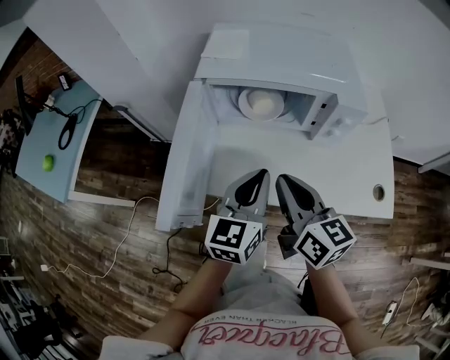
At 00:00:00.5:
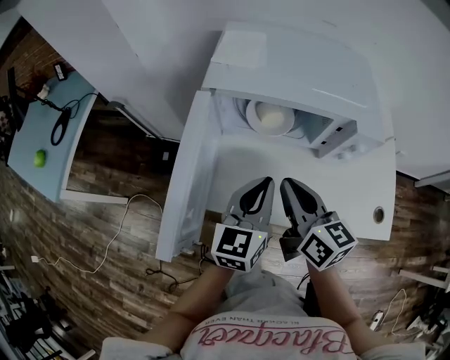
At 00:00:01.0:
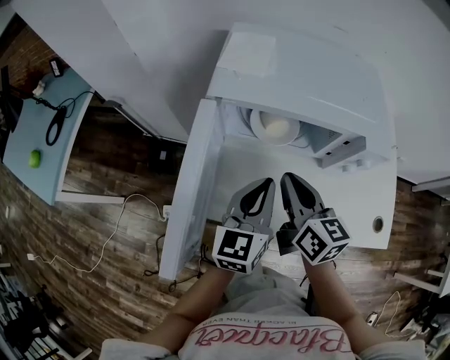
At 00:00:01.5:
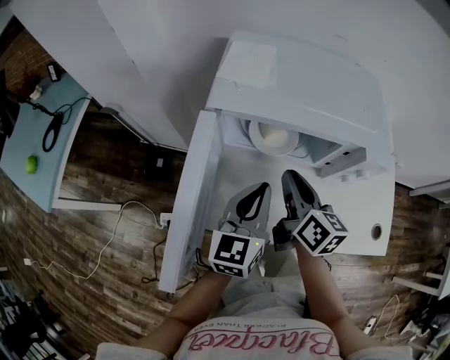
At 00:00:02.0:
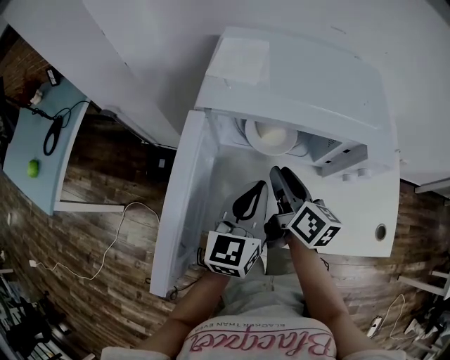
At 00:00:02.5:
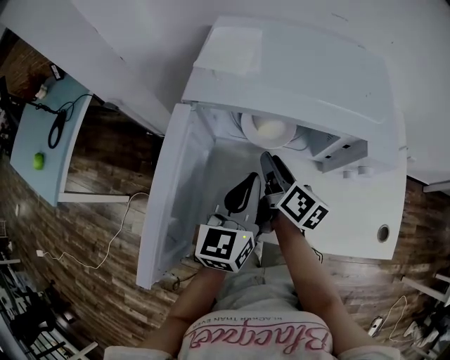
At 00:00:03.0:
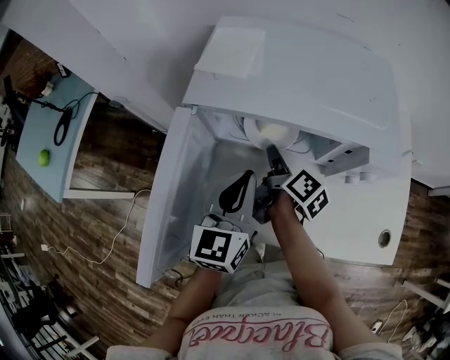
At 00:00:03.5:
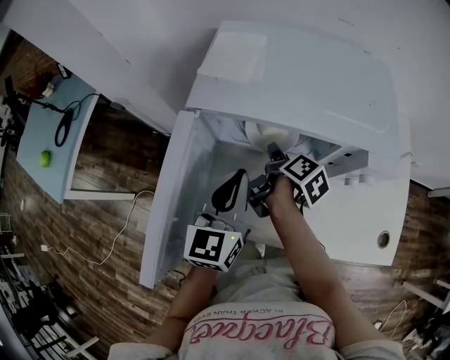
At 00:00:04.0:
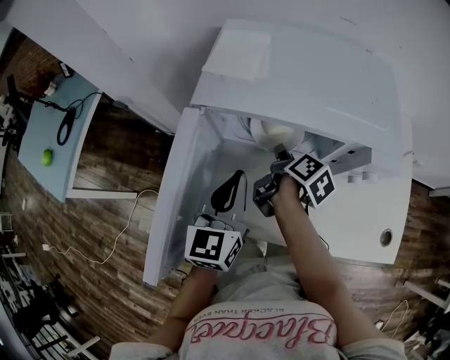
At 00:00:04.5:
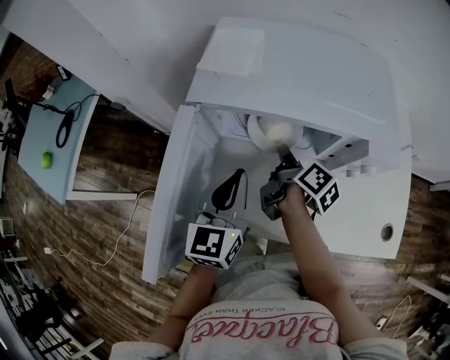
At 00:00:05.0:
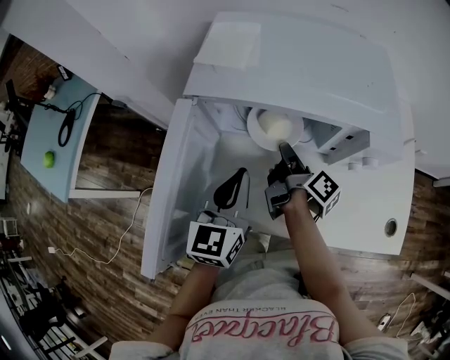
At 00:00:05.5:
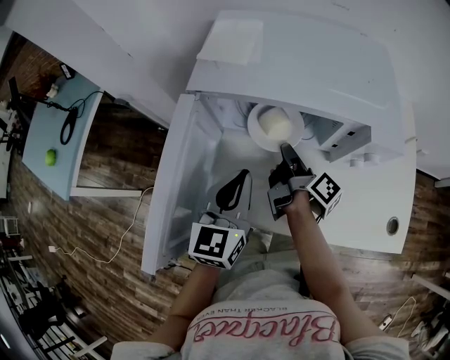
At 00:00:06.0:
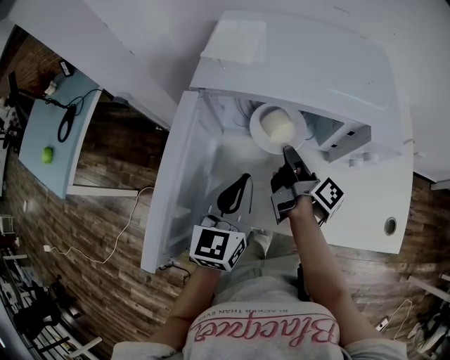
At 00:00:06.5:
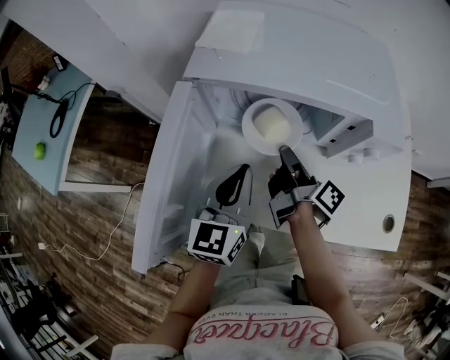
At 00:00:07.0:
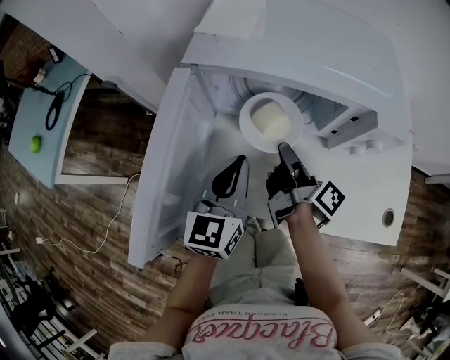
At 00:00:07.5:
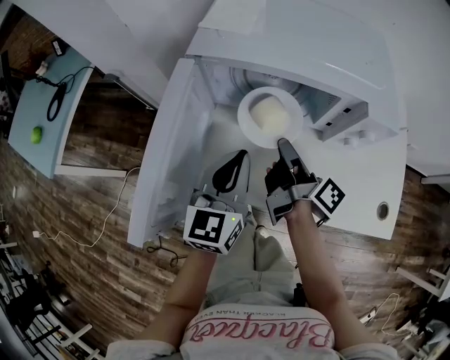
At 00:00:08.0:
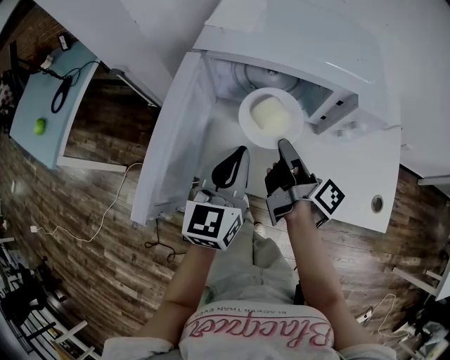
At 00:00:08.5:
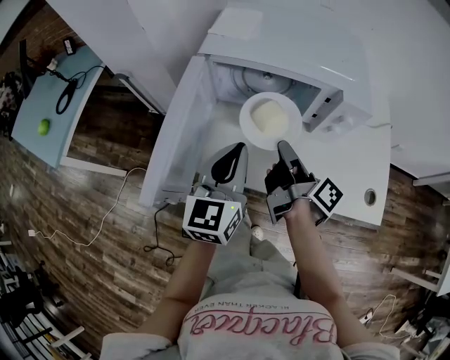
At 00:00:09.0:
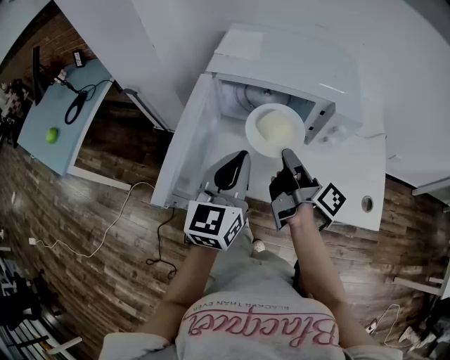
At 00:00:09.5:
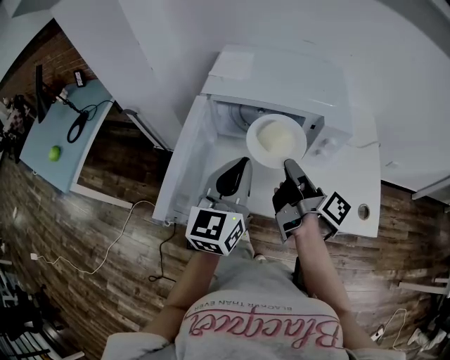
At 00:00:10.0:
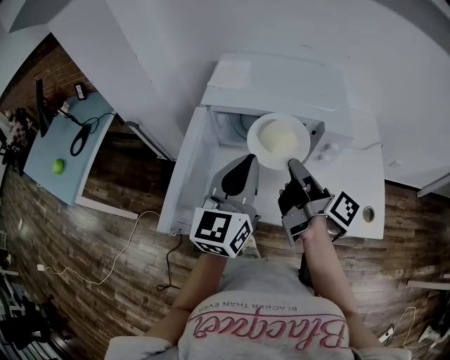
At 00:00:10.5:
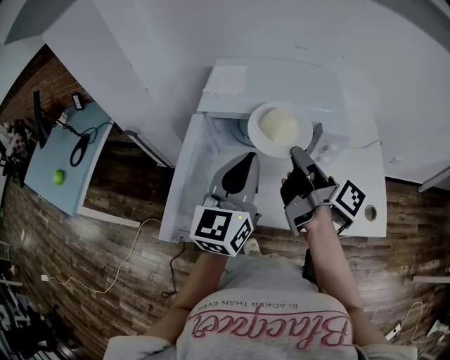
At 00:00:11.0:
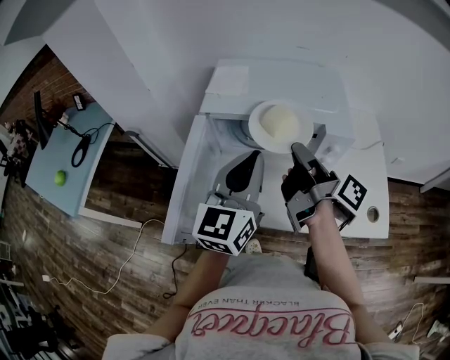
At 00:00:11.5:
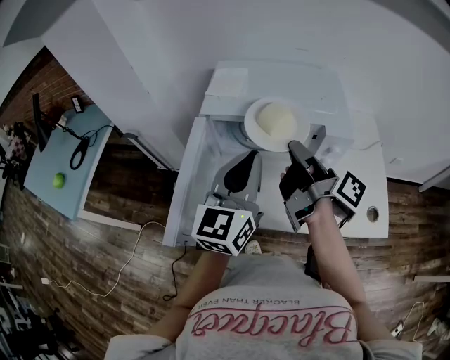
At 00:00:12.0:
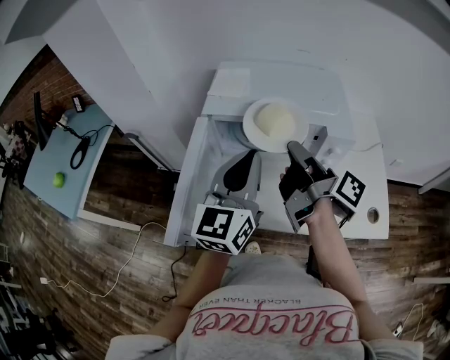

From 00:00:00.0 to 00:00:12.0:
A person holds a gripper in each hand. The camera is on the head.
From 00:00:00.0 to 00:00:02.0: The right gripper travels forward and downward by about 20 cm, changes its angle by approximately 20 degrees, and opens its fingers. Meanwhile the left gripper is displaced forward by roughly 10 cm.
From 00:00:02.0 to 00:00:04.0: The right gripper goes about 10 cm downward and forward, and turns by approximately 40 degrees.
From 00:00:04.0 to 00:00:06.0: The right gripper changes its angle by some 30 degrees.
From 00:00:06.0 to 00:00:08.0: The right gripper is displaced backward and upward by some 10 cm, while the left gripper ends up roughly 5 cm from where it was.
From 00:00:08.0 to 00:00:10.0: Both grippers travel together upward, approximately 10 cm.
From 00:00:10.0 to 00:00:12.0: The right gripper moves some 5 cm.

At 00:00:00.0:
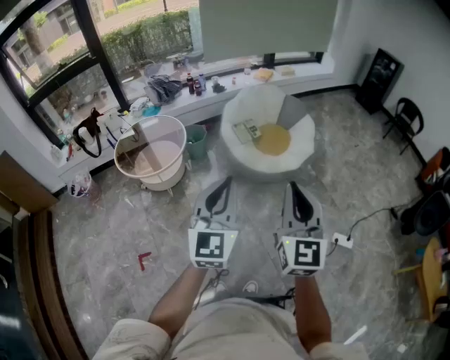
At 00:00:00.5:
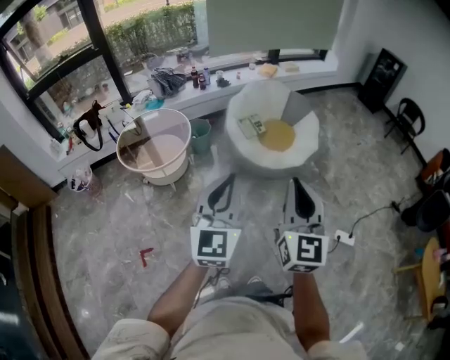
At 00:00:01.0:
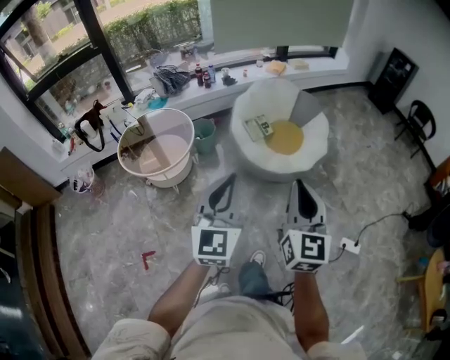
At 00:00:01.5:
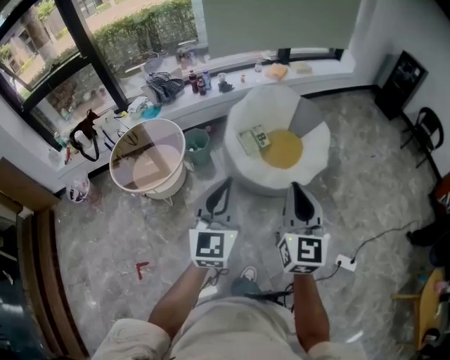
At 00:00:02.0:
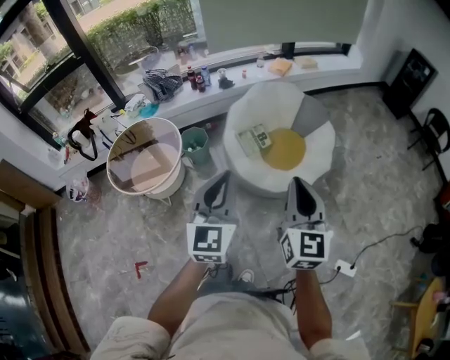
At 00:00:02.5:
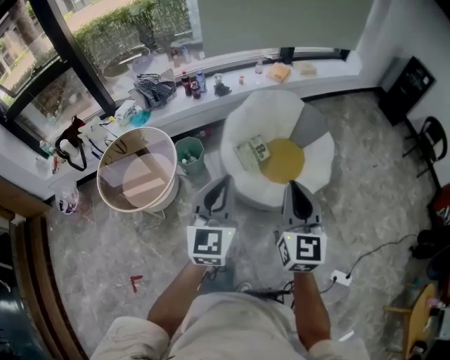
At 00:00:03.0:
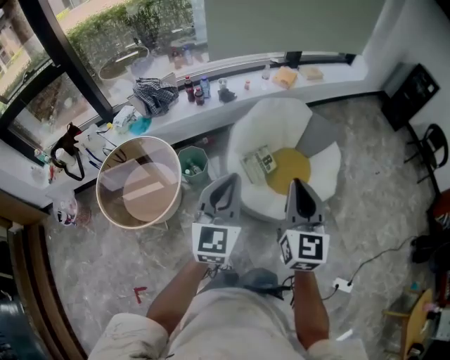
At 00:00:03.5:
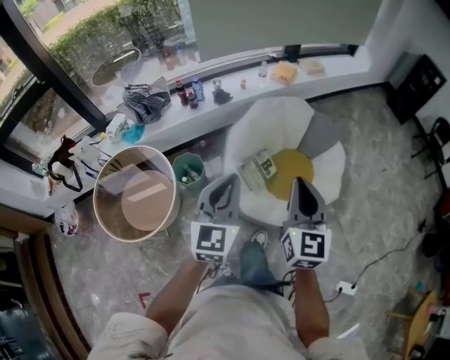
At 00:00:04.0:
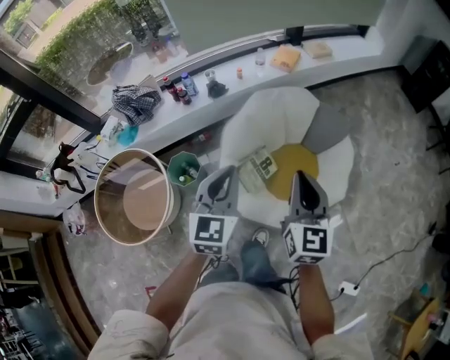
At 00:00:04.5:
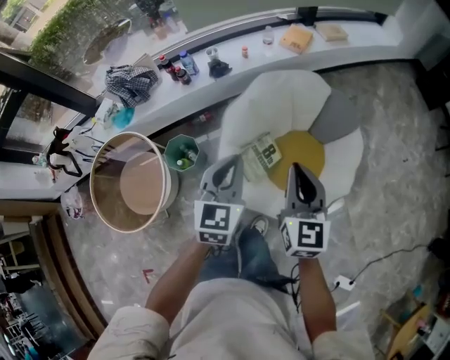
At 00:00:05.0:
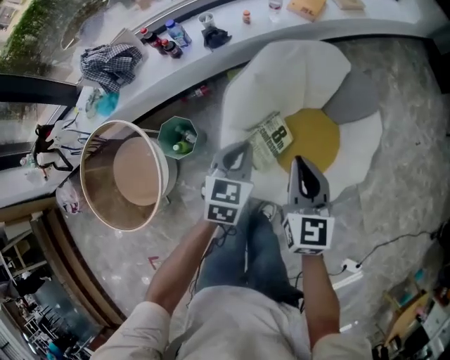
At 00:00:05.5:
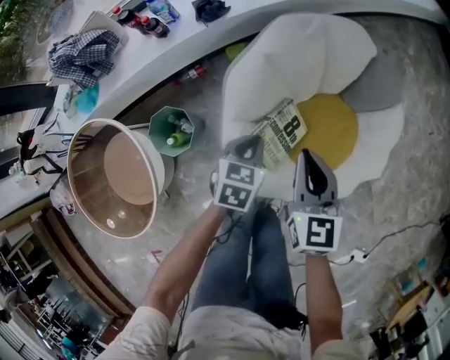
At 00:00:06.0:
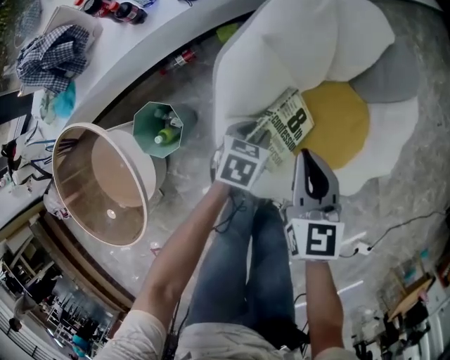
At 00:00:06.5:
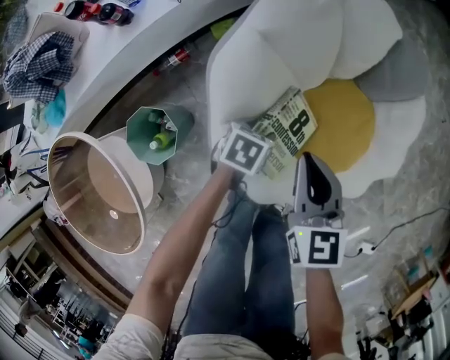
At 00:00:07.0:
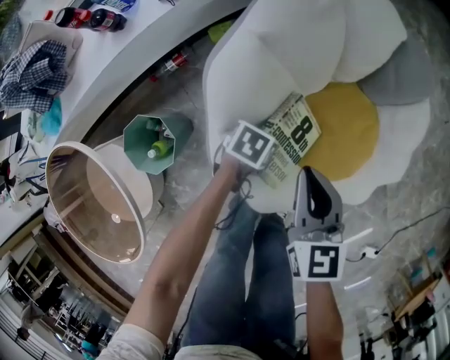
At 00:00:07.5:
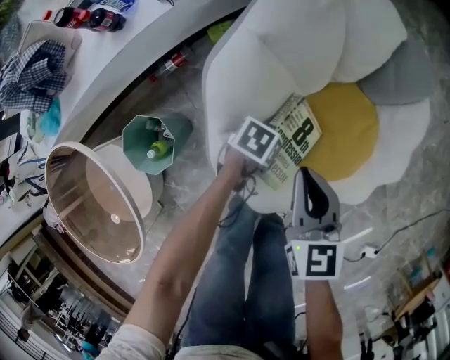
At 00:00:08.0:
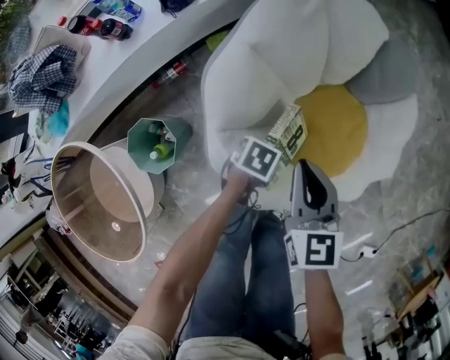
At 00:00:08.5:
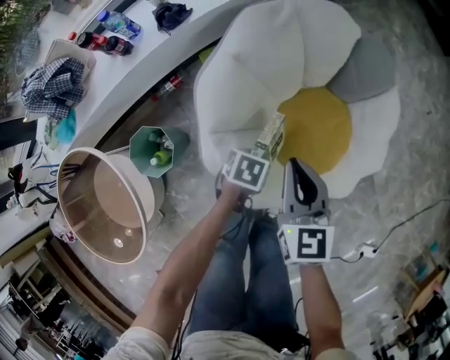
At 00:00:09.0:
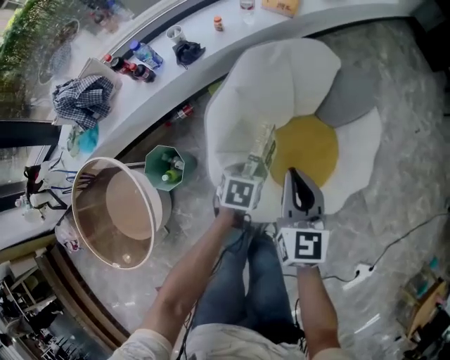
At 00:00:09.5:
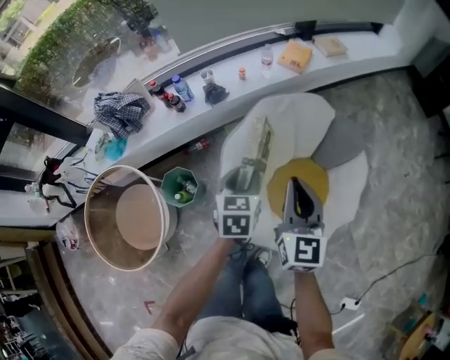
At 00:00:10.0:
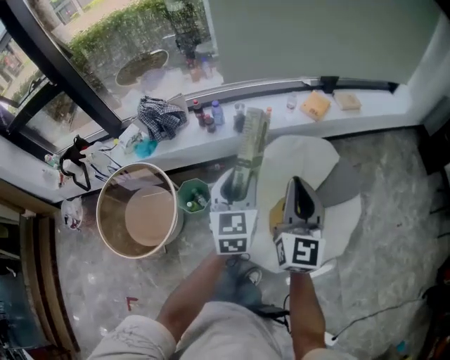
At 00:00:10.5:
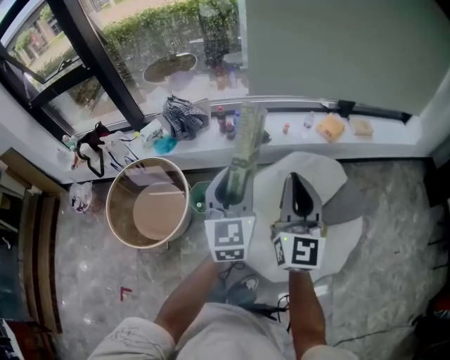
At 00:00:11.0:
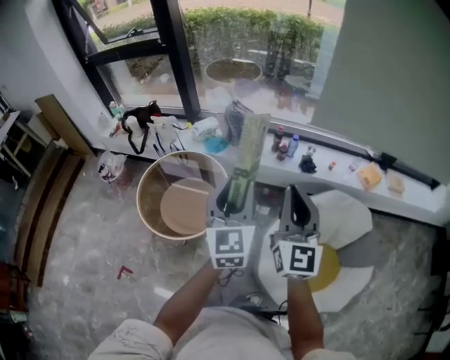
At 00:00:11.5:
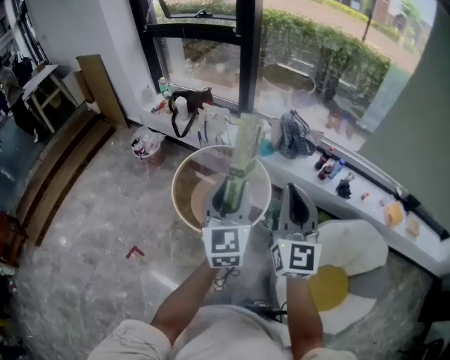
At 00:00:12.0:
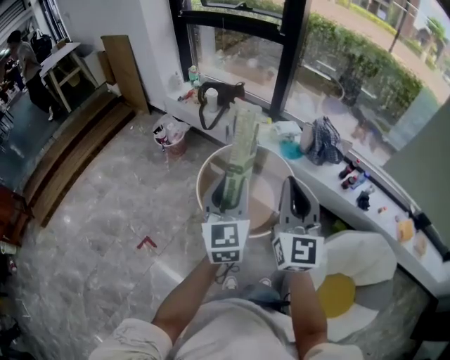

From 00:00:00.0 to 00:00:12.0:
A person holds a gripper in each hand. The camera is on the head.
From 00:00:00.0 to 00:00:02.0: The grippers both shift forward by approximately 30 cm.
From 00:00:02.0 to 00:00:04.0: Both grippers are carried forward, roughly 40 cm.
From 00:00:04.0 to 00:00:06.0: The right gripper goes roughly 40 cm downward and forward, and turns by some 20 degrees; the left gripper heads downward, covering about 50 cm, tilts its fingers about 40 degrees downward, and opens.
From 00:00:06.0 to 00:00:08.0: The left gripper travels downward and to the right by some 10 cm, and changes its angle by some 20 degrees.
From 00:00:08.0 to 00:00:10.0: The grippers both shift upward by approximately 50 cm. The left gripper angles its fingers upward, by roughly 50 degrees. Meanwhile the right gripper tips its fingers upward by some 40 degrees.
From 00:00:10.0 to 00:00:12.0: The pair of grippers is taken about 60 cm. The right gripper swivels approximately 50 degrees; the left gripper swivels about 50 degrees.

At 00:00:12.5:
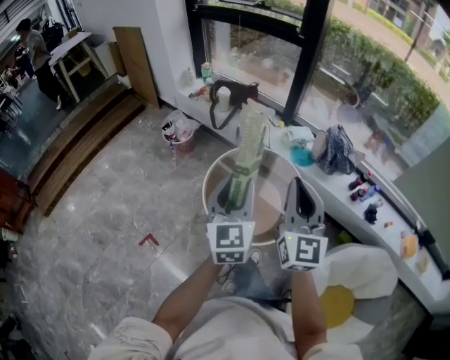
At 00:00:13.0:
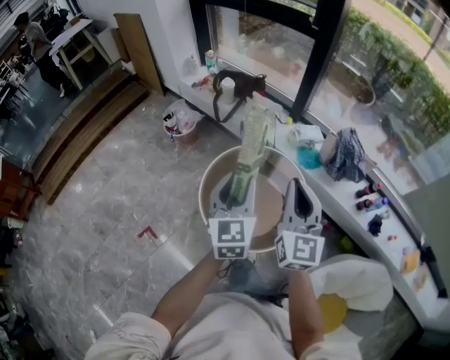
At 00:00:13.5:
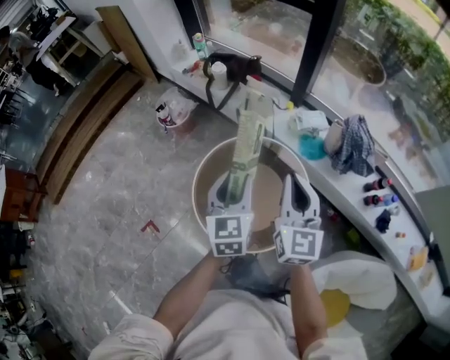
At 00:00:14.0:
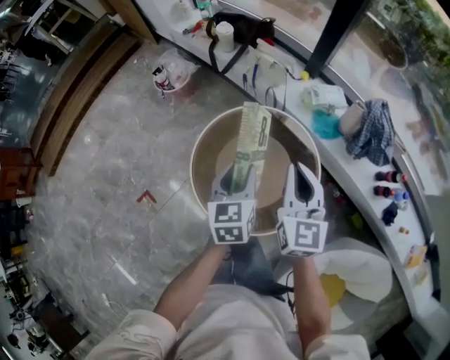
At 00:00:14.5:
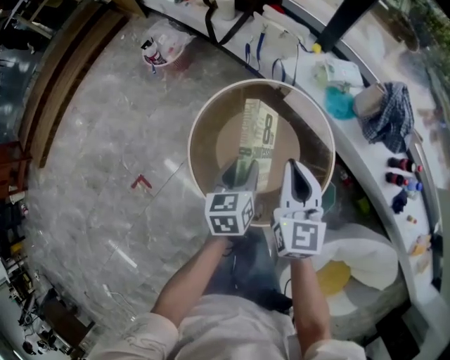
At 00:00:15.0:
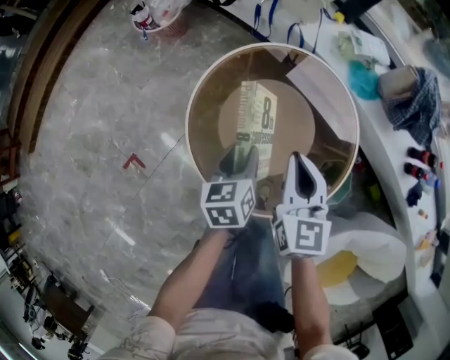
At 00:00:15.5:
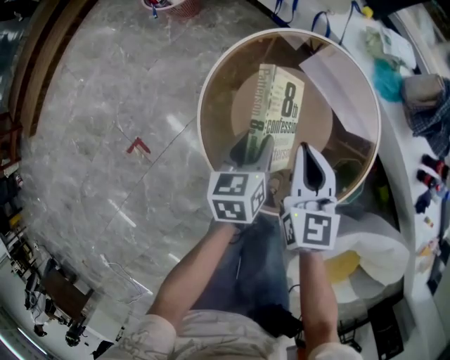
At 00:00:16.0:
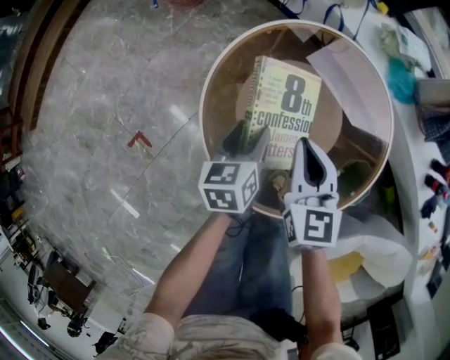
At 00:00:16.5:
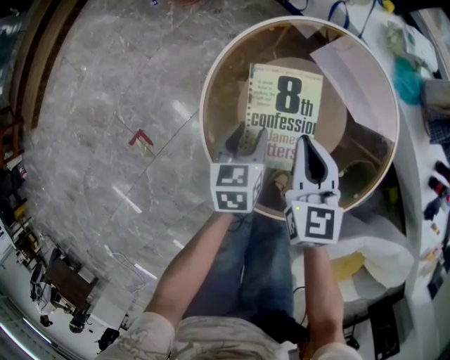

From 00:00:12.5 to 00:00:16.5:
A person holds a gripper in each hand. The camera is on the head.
From 00:00:12.5 to 00:00:14.5: The two grippers go approximately 40 cm downward and forward. The left gripper tips its fingers downward by roughly 30 degrees. Meanwhile the right gripper swivels roughly 30 degrees.
From 00:00:14.5 to 00:00:16.5: The two grippers go some 20 cm downward and to the left.
